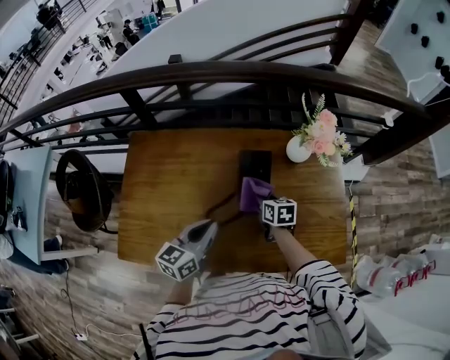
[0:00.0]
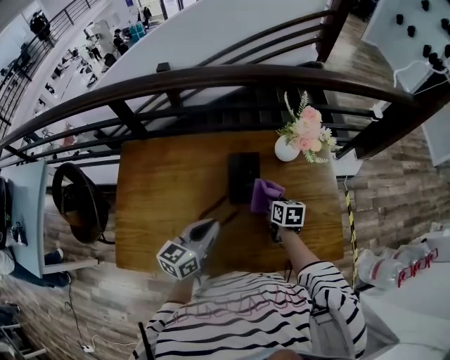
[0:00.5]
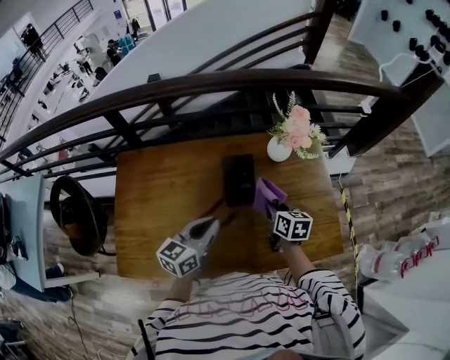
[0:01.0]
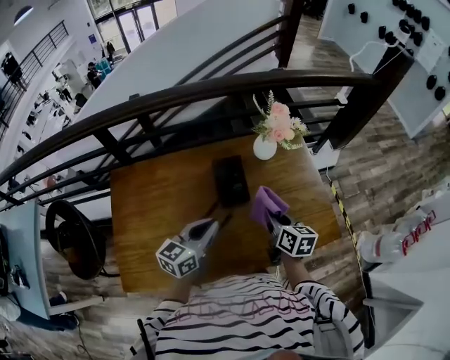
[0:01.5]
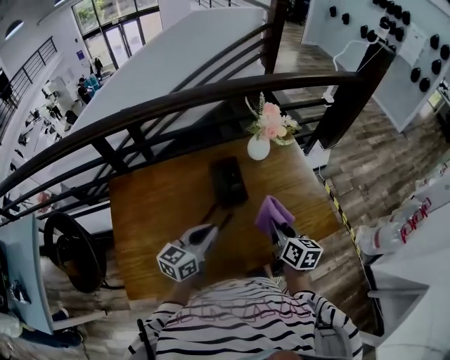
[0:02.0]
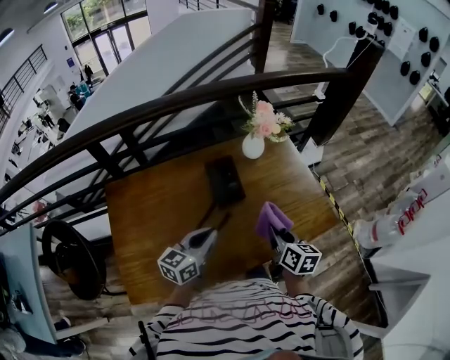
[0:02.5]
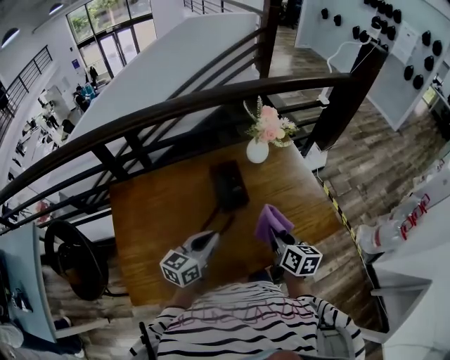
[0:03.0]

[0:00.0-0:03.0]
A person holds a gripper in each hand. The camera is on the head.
0:00.0 to 0:01.5: The right gripper is displaced upward, backward and to the right by about 20 cm, and rotates roughly 30 degrees. Meanwhile the left gripper shifts by some 5 cm.
0:01.5 to 0:03.0: The right gripper shifts about 10 cm backward. The left gripper travels backward by about 5 cm.

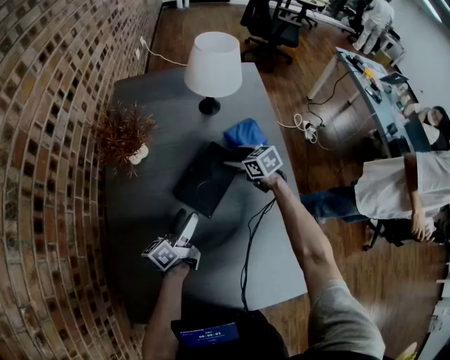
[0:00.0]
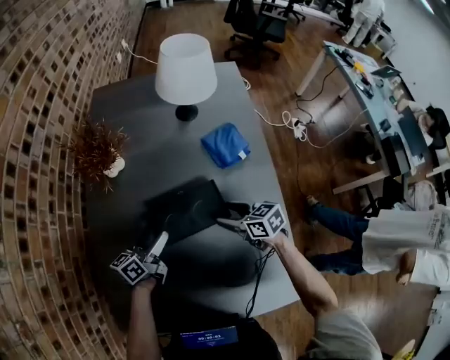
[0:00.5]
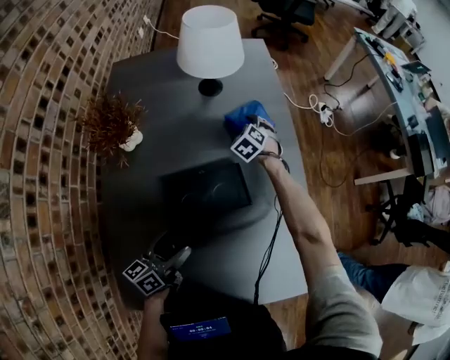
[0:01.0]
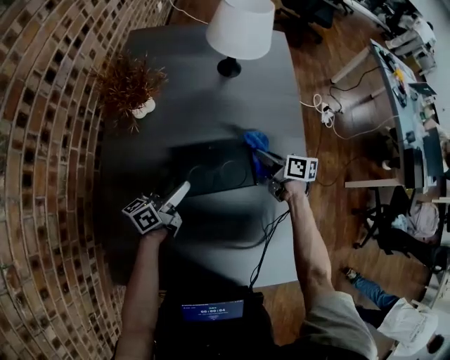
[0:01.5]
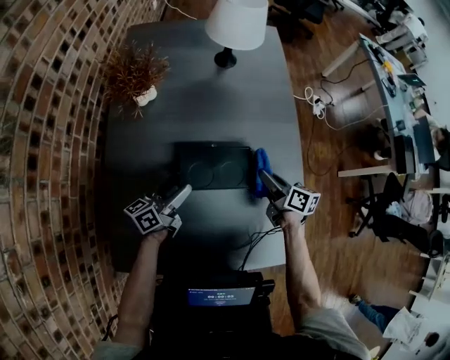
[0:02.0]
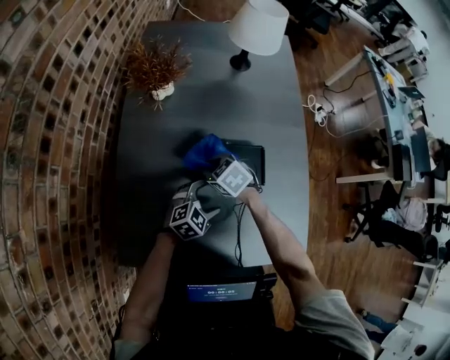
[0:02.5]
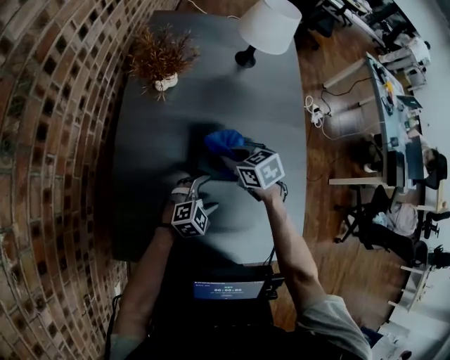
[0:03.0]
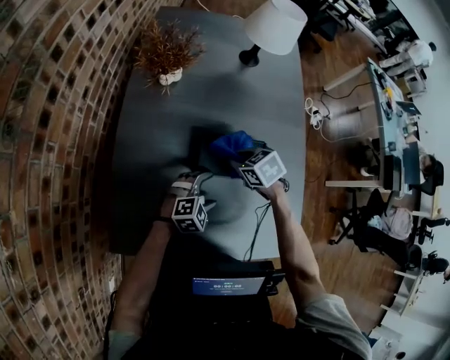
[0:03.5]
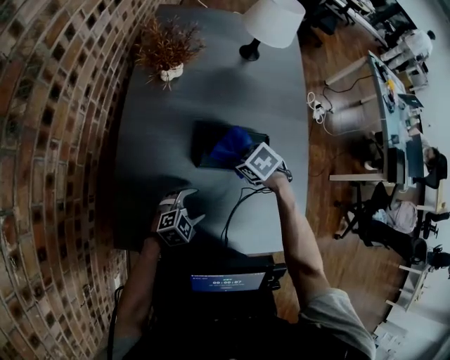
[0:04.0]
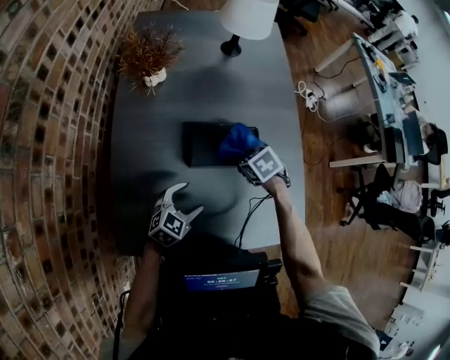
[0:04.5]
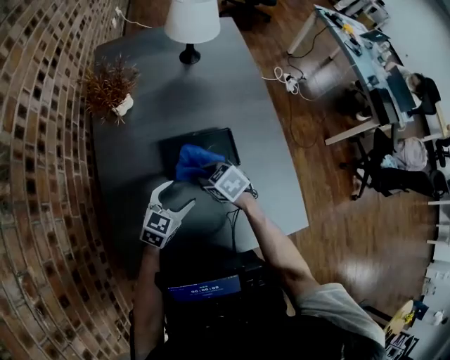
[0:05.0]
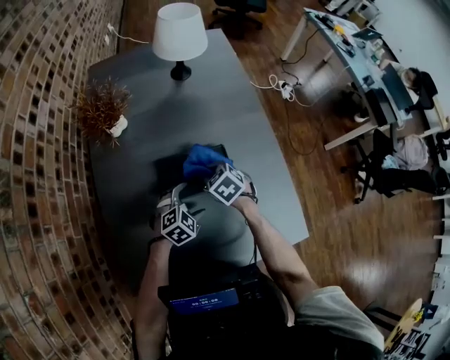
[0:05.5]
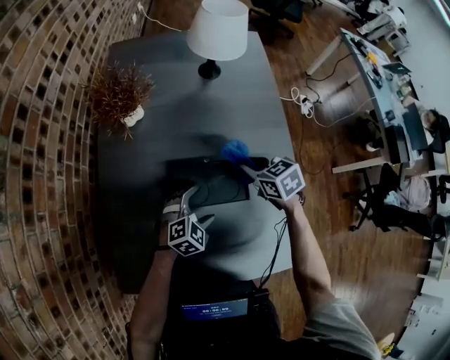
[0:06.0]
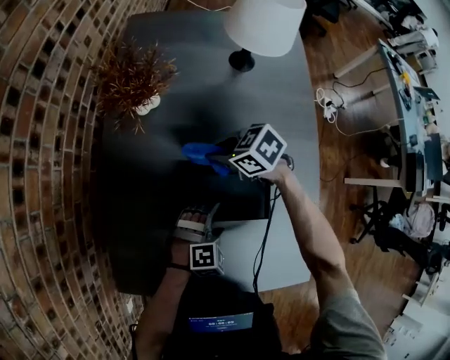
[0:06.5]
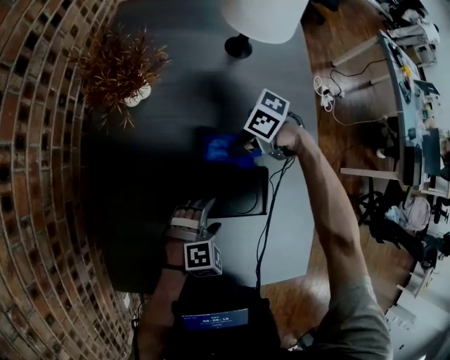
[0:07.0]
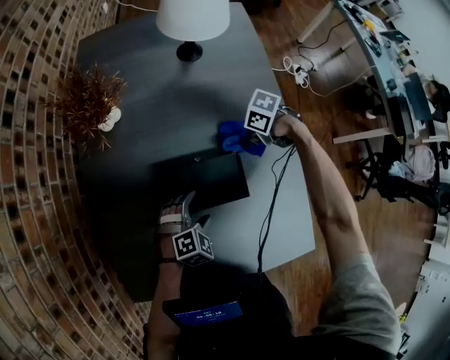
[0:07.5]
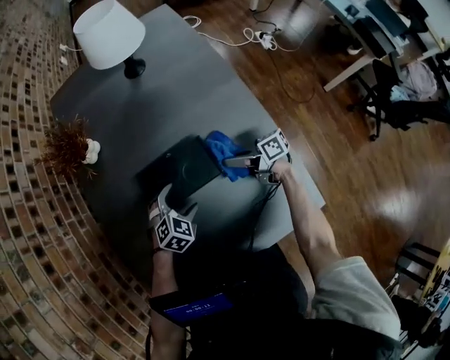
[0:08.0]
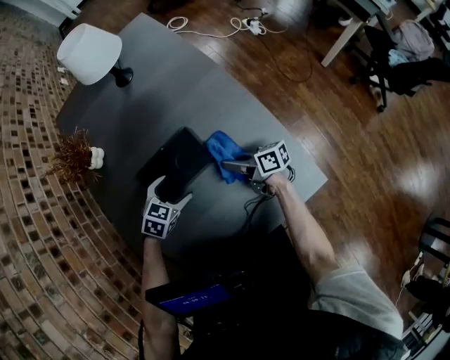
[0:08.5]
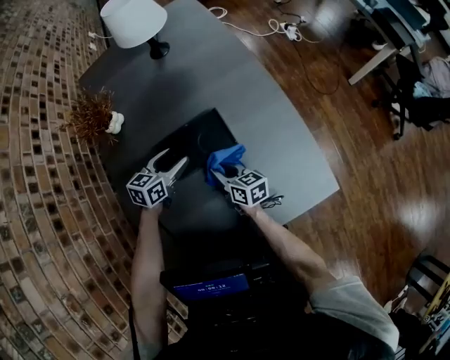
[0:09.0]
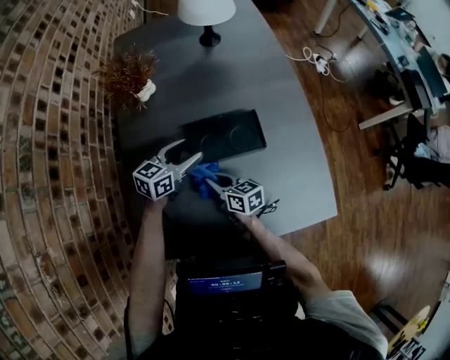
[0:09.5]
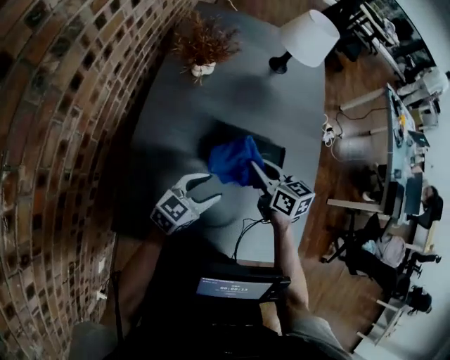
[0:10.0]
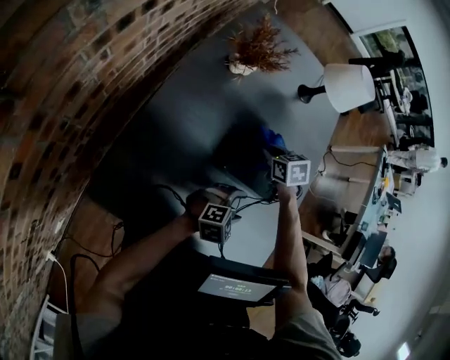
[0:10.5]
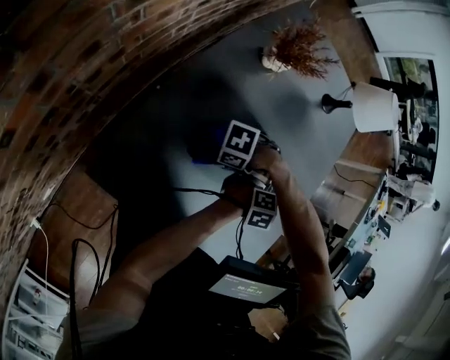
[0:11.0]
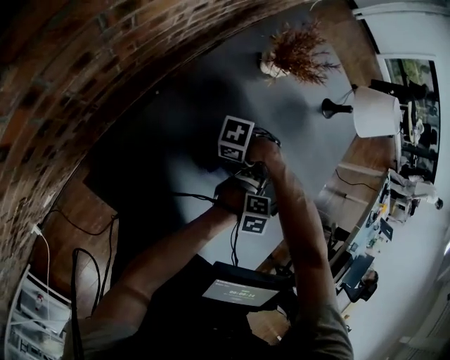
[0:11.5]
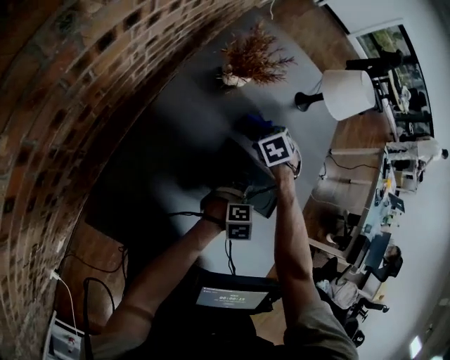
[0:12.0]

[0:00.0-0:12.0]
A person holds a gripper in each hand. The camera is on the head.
0:00.0 to 0:02.0: The right gripper reaches approximately 5 cm downward, then returns, rolls clockwise, seen from behind, by some 40 degrees, and closes its fingers. The left gripper shifts by approximately 10 cm.
0:02.0 to 0:04.0: The left gripper changes place by approximately 20 cm, and angles its fingers downward, by roughly 40 degrees; the right gripper shifts by approximately 20 cm, and points its fingers roughly 50 degrees further downward.
0:04.0 to 0:06.0: The left gripper changes place by some 15 cm, while the right gripper shifts by some 15 cm, and changes its angle by approximately 30 degrees.
0:06.0 to 0:08.0: The right gripper points its fingers about 50 degrees further upward.
0:08.0 to 0:10.0: The right gripper heads to the left and upward, covering approximately 20 cm, and changes its angle by about 50 degrees, while the left gripper is displaced upward, backward and to the left by approximately 15 cm, points its fingers about 40 degrees further upward, and closes its fingers.
0:10.0 to 0:12.0: The right gripper moves about 20 cm, and tilts its fingers roughly 40 degrees downward, while the left gripper moves some 15 cm, and turns by about 40 degrees.

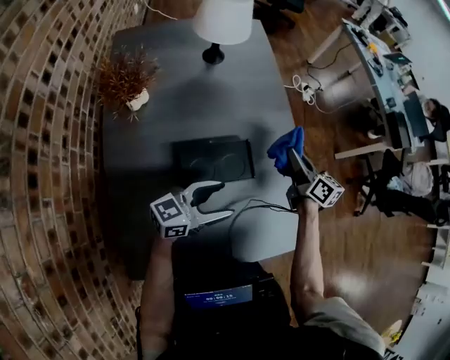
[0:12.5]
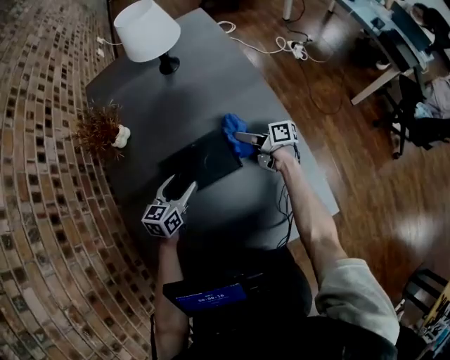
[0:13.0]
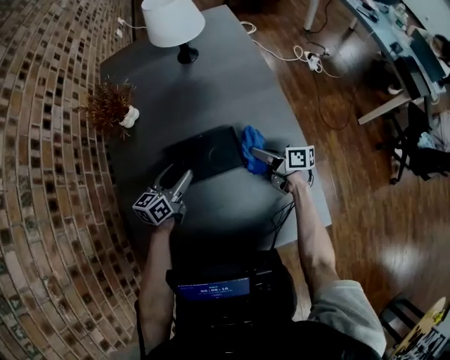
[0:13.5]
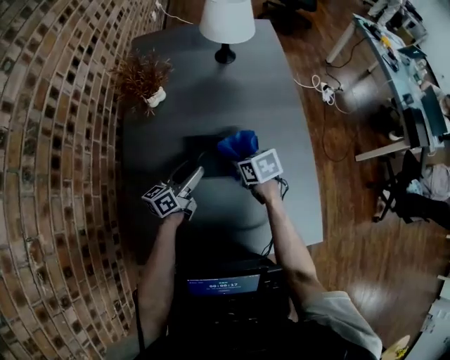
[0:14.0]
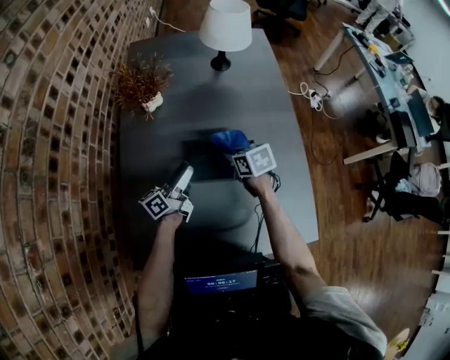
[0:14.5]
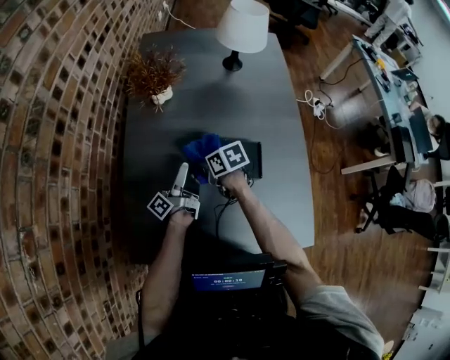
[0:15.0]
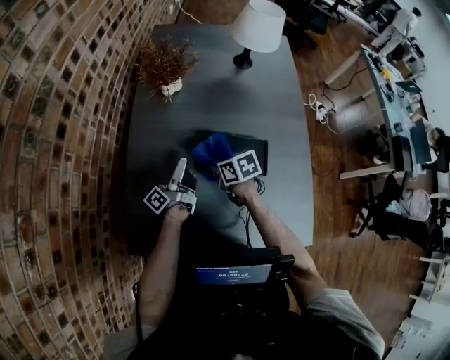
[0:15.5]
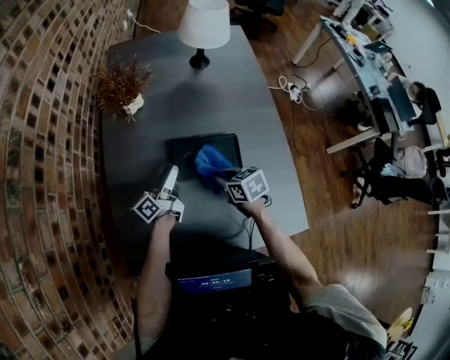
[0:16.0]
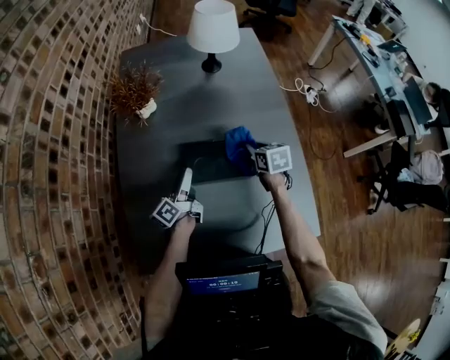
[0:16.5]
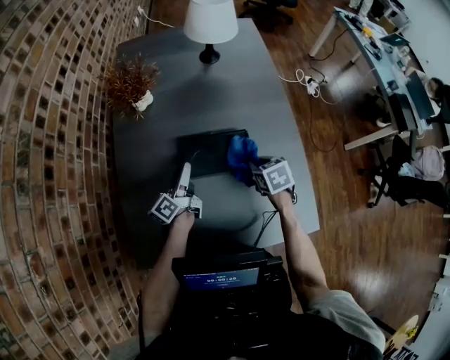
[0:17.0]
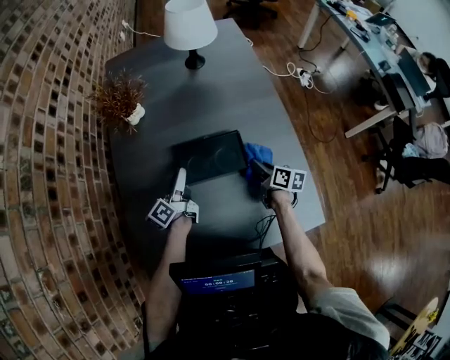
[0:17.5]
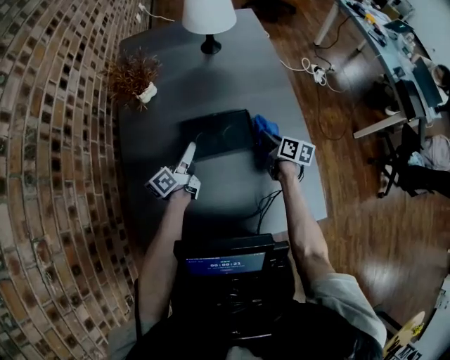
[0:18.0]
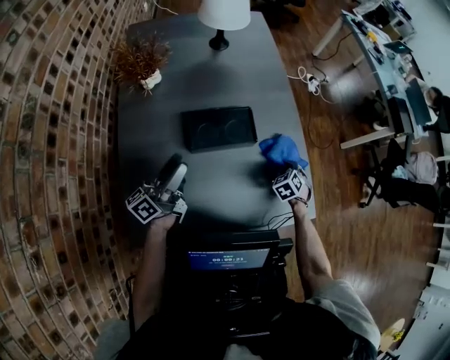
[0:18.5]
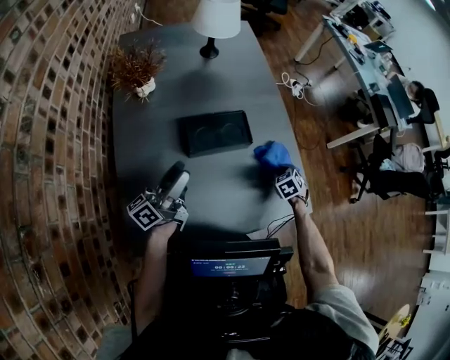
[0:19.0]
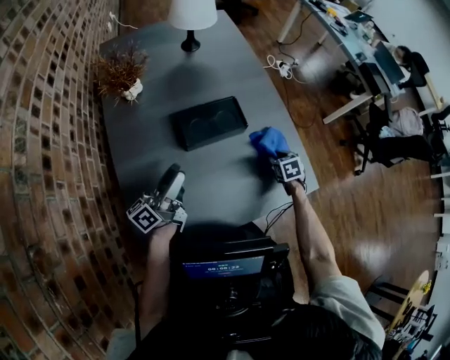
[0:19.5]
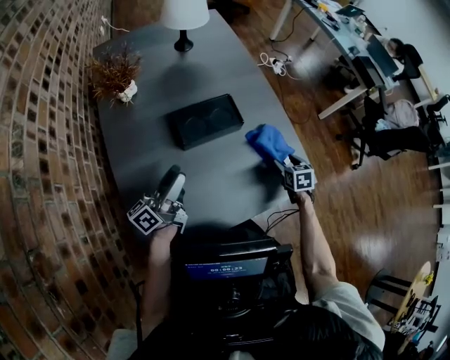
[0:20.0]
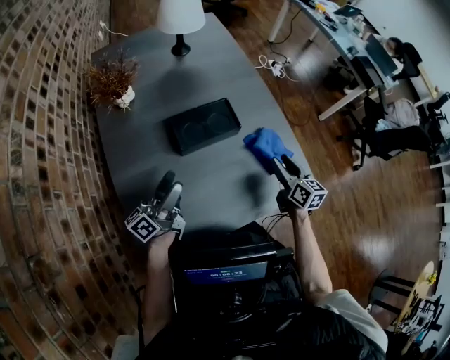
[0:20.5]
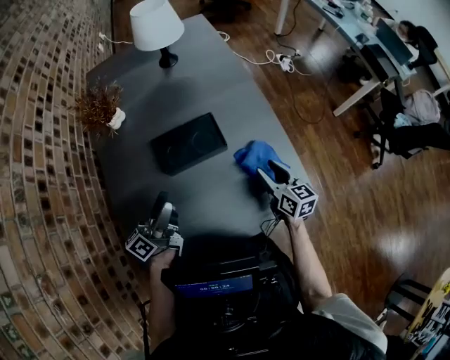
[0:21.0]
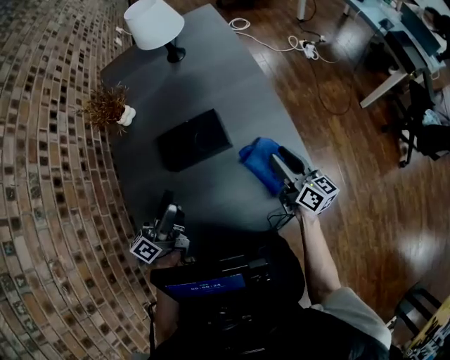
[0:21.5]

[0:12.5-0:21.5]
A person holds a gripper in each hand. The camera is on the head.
0:12.5 to 0:14.5: The left gripper moves some 15 cm, and rotates roughly 50 degrees. The right gripper ends up about 20 cm from where it was, and tilts its fingers some 30 degrees downward.
0:14.5 to 0:17.0: The right gripper moves about 15 cm.
0:17.0 to 0:19.5: The right gripper shifts by roughly 15 cm, and opens up, while the left gripper shifts by approximately 15 cm, and changes its angle by some 30 degrees.
0:19.5 to 0:21.5: The left gripper moves to the right, approximately 10 cm. The right gripper travels upward by about 15 cm, and angles its fingers upward, by some 60 degrees.

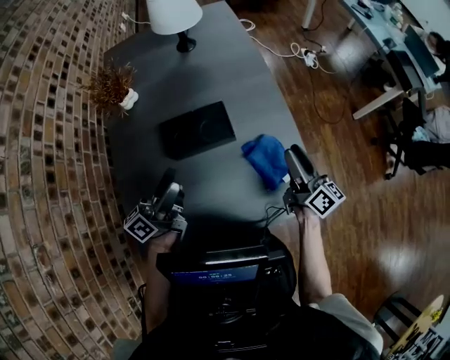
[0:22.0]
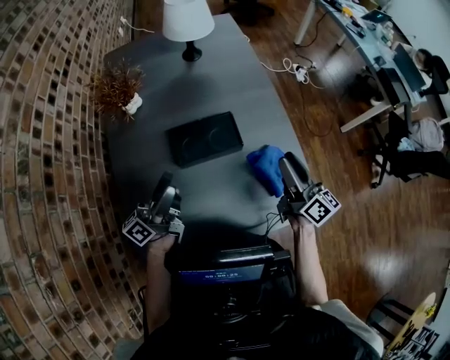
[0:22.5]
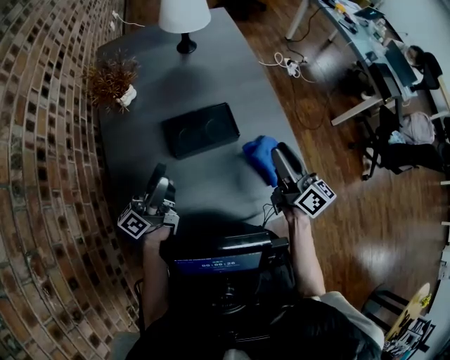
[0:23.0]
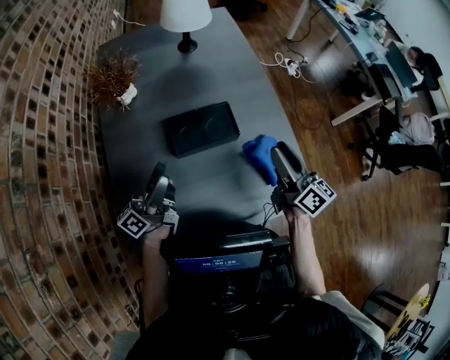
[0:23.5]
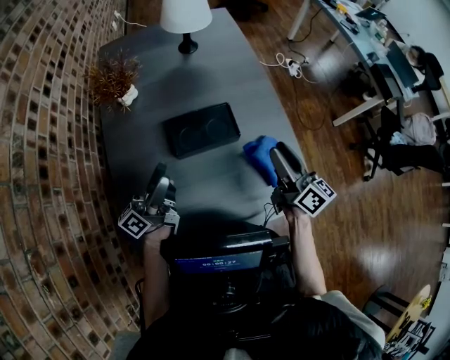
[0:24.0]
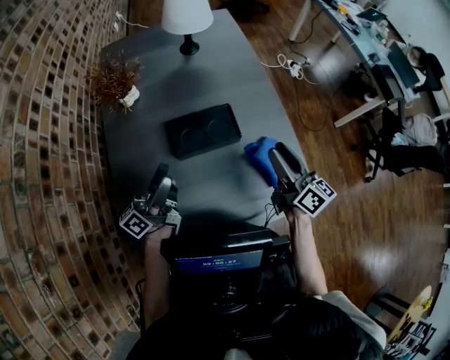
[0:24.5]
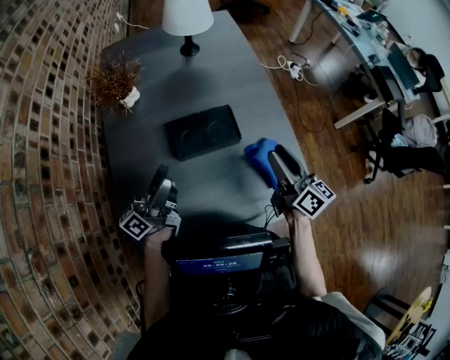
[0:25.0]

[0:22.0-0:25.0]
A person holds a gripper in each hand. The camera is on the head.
0:22.0 to 0:23.5: The right gripper heads to the left and upward, covering some 10 cm. The left gripper is displaced to the left by about 10 cm.
0:23.5 to 0:25.0: Both grippers stay about where they are.
